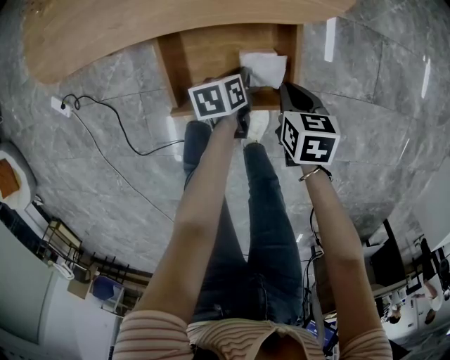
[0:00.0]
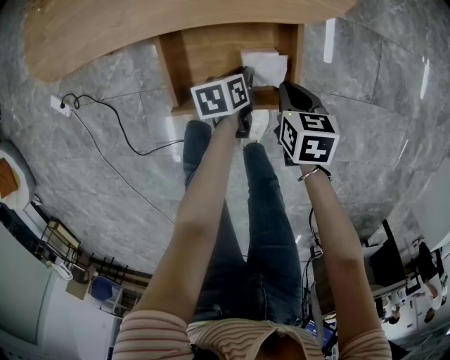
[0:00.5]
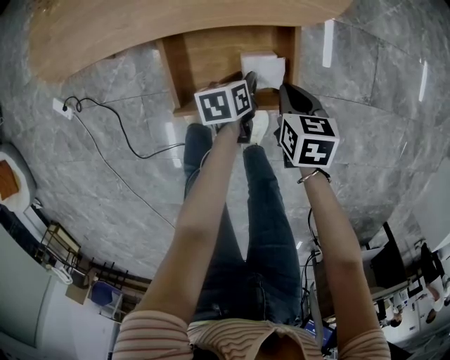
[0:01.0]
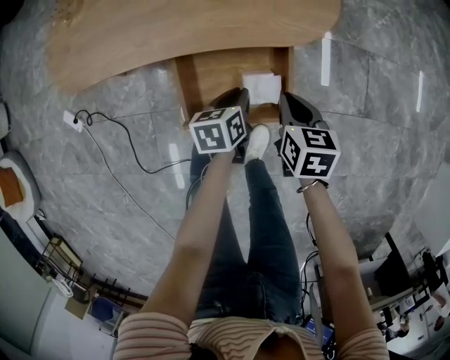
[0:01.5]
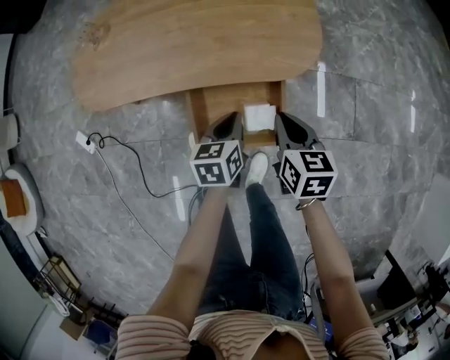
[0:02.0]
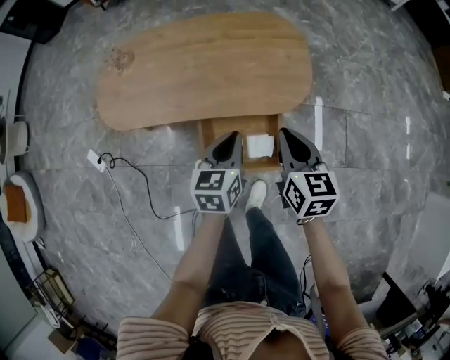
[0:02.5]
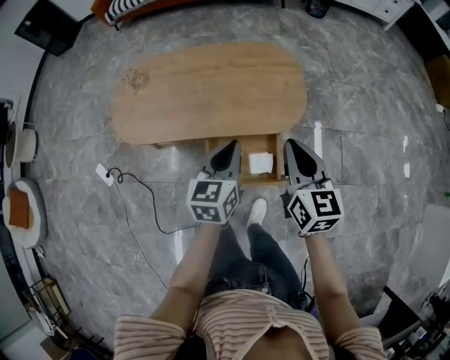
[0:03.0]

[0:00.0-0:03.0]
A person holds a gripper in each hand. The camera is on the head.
0:00.0 to 0:01.5: Both grippers travel together upward, roughly 10 cm.
0:01.5 to 0:03.0: The grippers both shift upward by roughly 35 cm. The left gripper swivels some 40 degrees, while the right gripper tips its fingers upward by about 30 degrees.

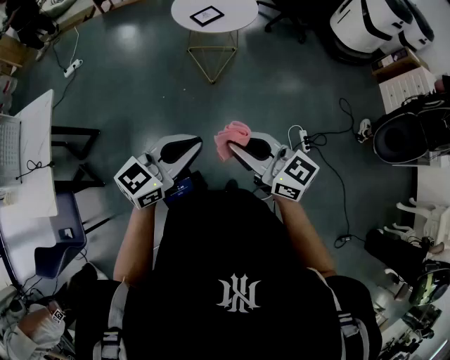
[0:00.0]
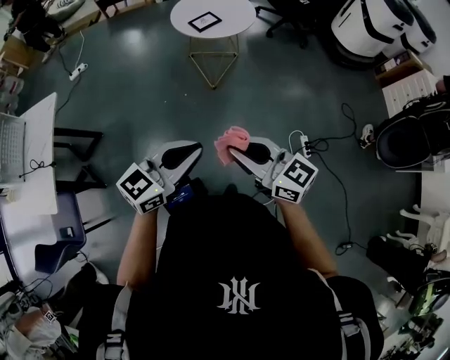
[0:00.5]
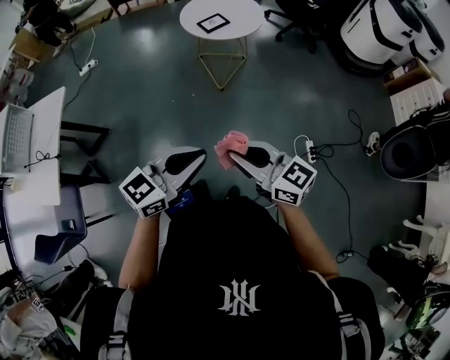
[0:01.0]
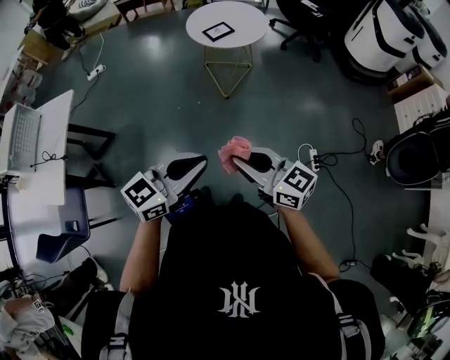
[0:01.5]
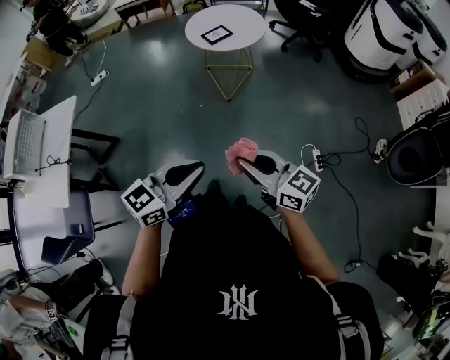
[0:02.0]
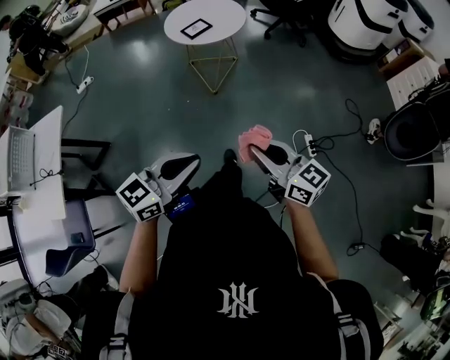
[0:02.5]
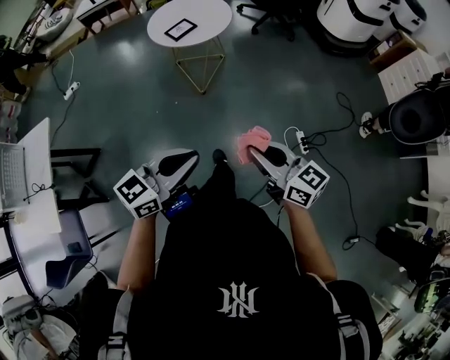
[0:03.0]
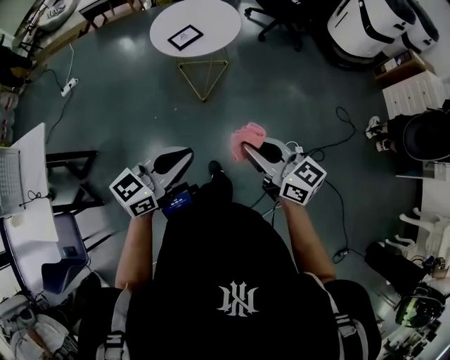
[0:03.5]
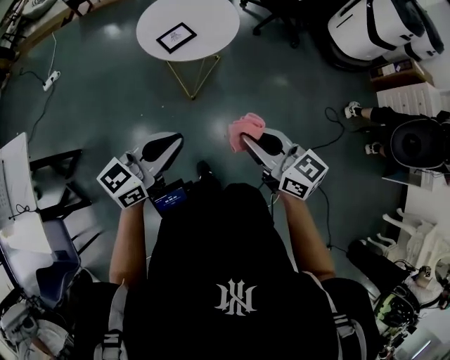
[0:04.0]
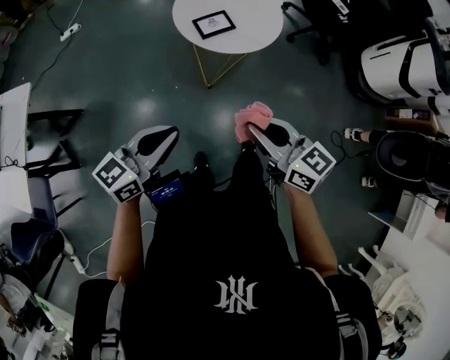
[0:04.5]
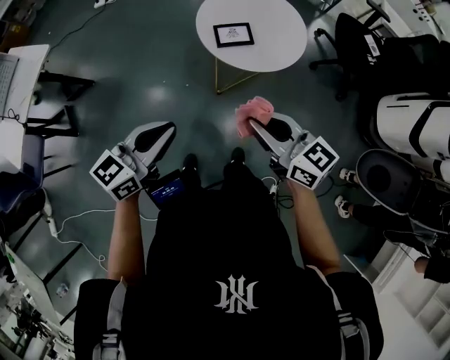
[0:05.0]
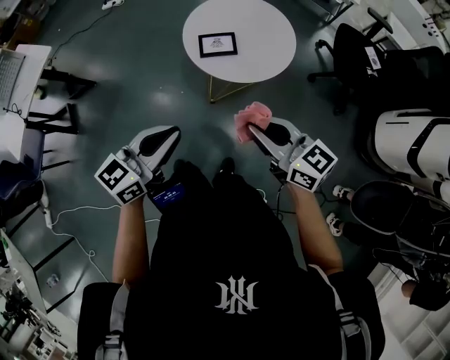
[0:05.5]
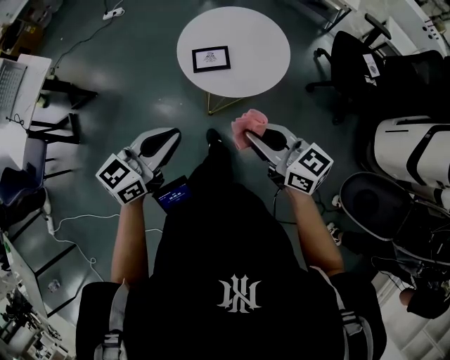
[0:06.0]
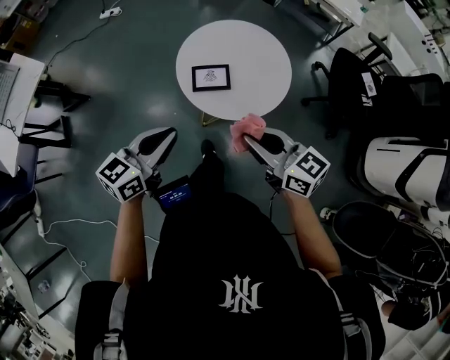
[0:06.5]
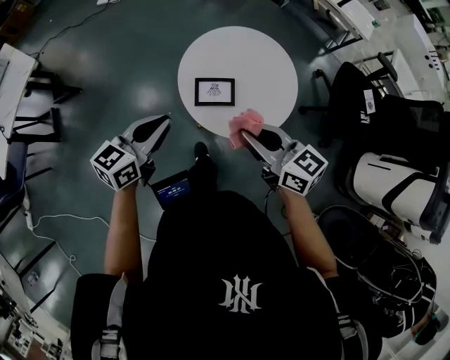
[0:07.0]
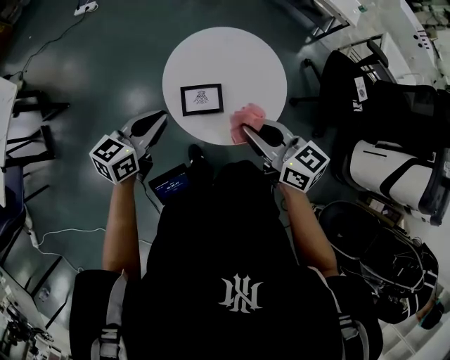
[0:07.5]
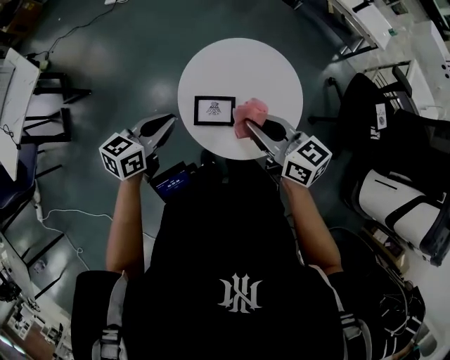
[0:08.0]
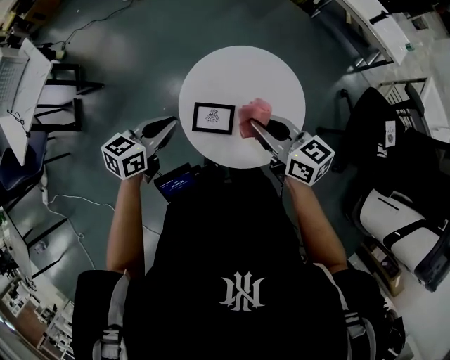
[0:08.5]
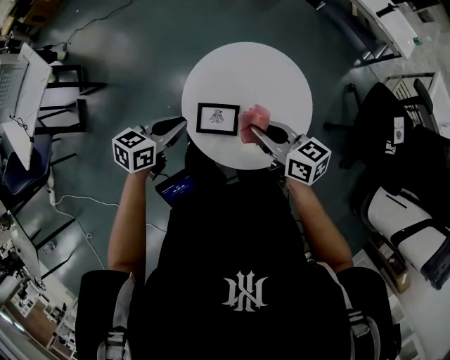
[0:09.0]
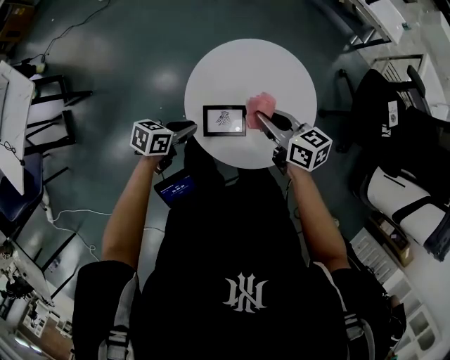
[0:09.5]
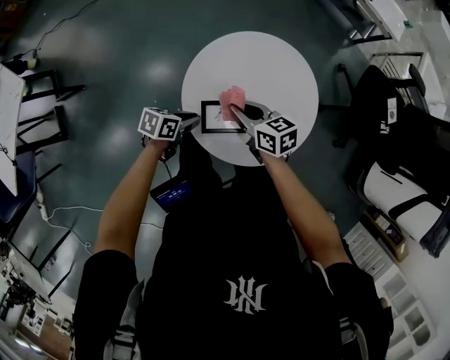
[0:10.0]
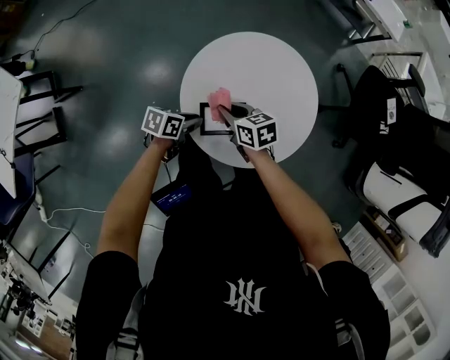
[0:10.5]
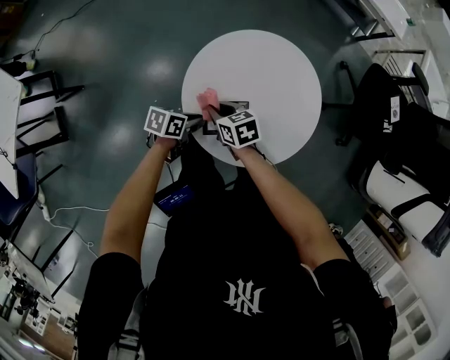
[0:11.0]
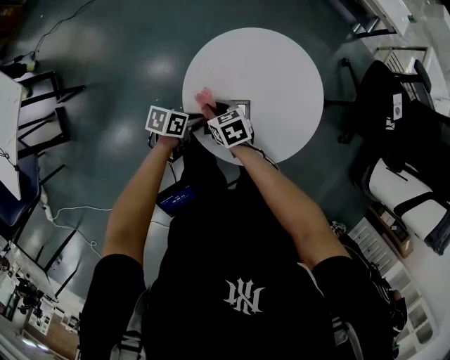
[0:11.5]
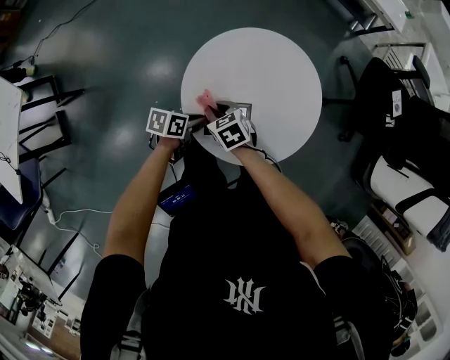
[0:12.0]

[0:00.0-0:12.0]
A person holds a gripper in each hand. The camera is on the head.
0:00.0 to 0:02.0: The left gripper moves to the right and backward, approximately 10 cm; the right gripper moves to the right, approximately 10 cm.
0:02.0 to 0:04.0: The grippers both shift forward by about 35 cm.
0:04.0 to 0:06.0: The left gripper ends up approximately 20 cm from where it was, and turns by roughly 40 degrees. Meanwhile the right gripper changes place by some 30 cm, and changes its angle by about 40 degrees.
0:06.0 to 0:08.0: Both grippers move forward, about 35 cm. The left gripper swivels roughly 20 degrees.
0:08.0 to 0:10.0: Both grippers move downward, approximately 20 cm. The left gripper changes its angle by some 30 degrees.
0:10.0 to 0:12.0: The right gripper heads downward, covering approximately 10 cm, and swivels some 30 degrees.

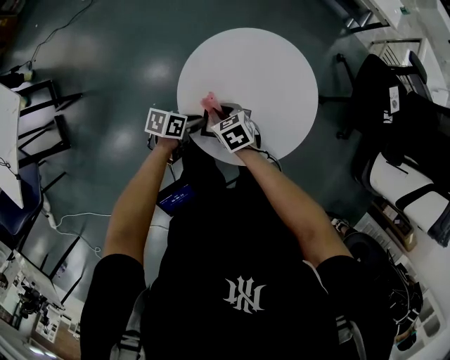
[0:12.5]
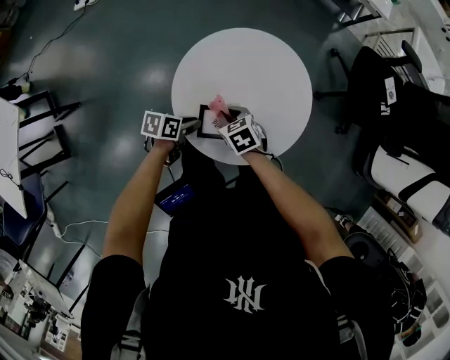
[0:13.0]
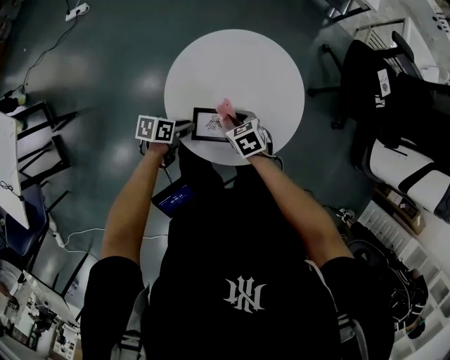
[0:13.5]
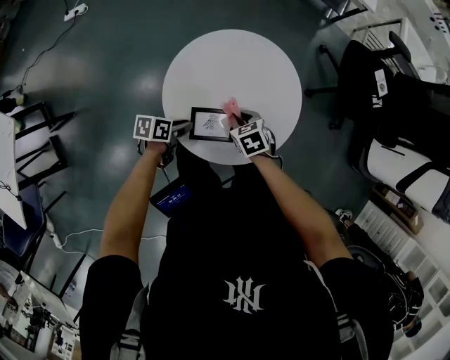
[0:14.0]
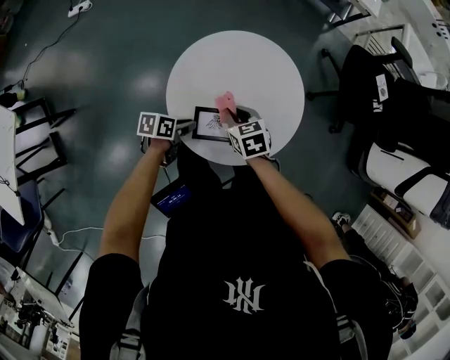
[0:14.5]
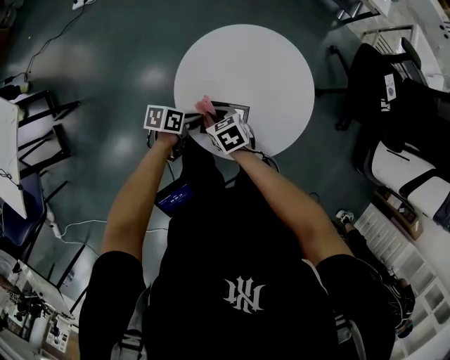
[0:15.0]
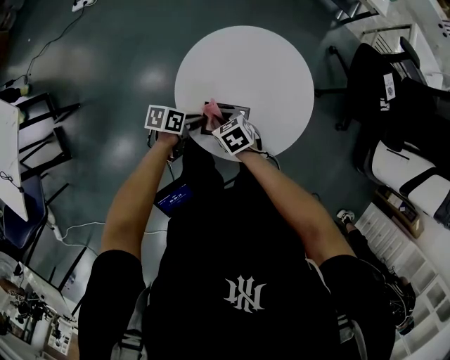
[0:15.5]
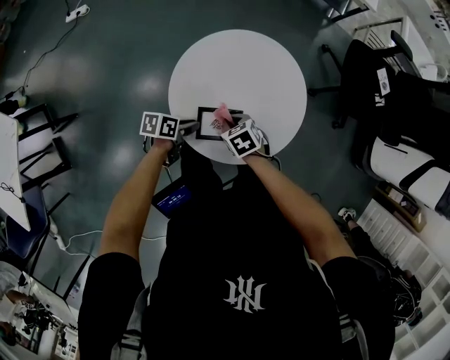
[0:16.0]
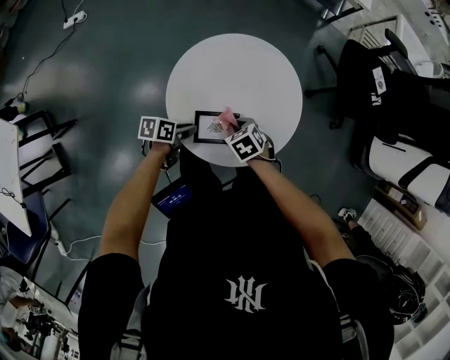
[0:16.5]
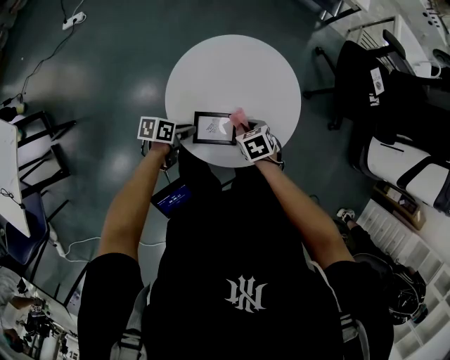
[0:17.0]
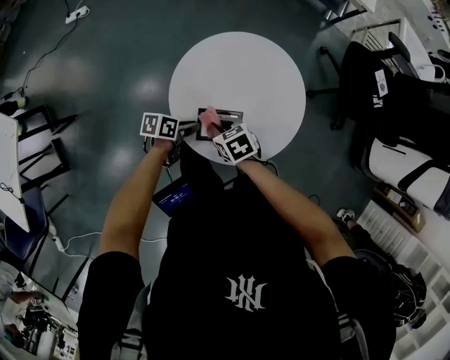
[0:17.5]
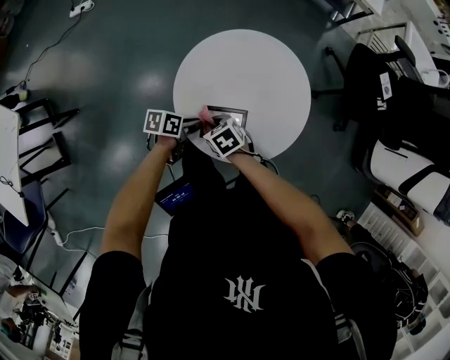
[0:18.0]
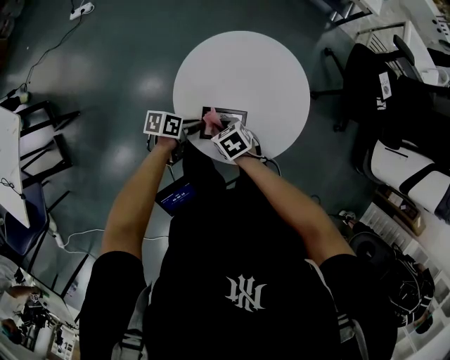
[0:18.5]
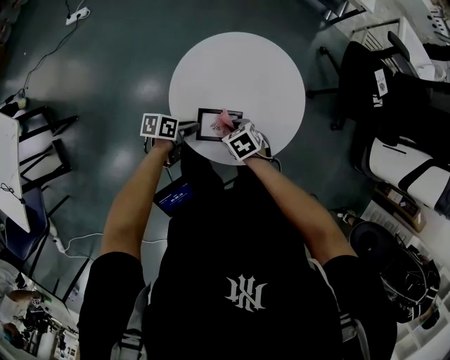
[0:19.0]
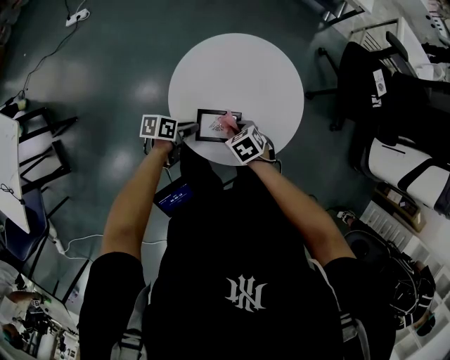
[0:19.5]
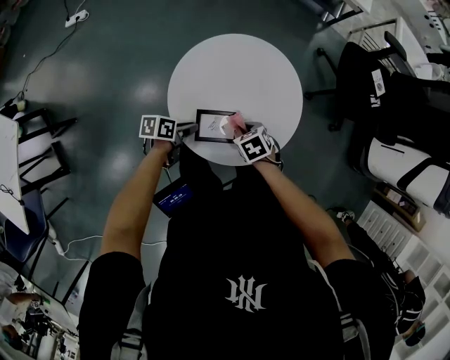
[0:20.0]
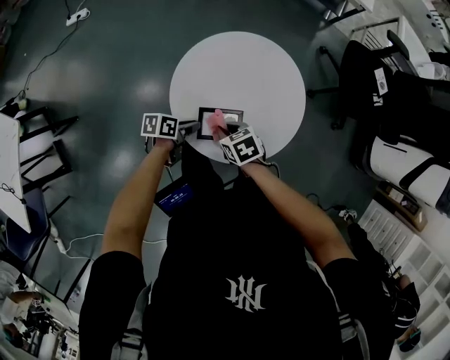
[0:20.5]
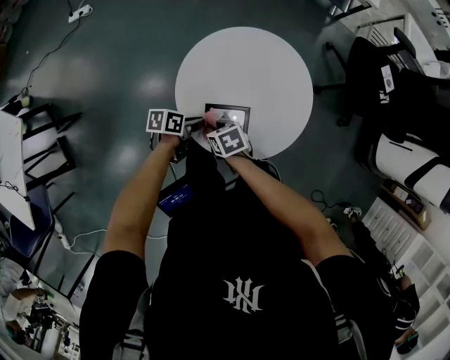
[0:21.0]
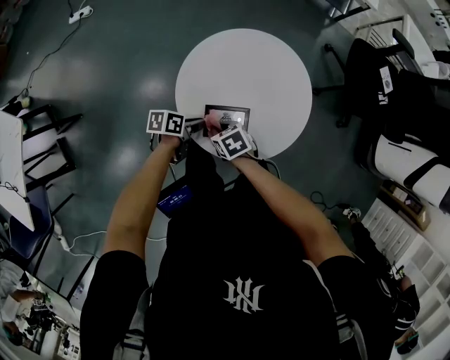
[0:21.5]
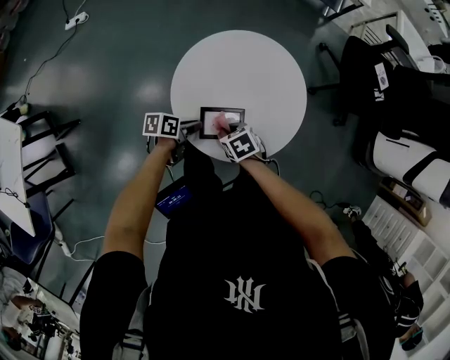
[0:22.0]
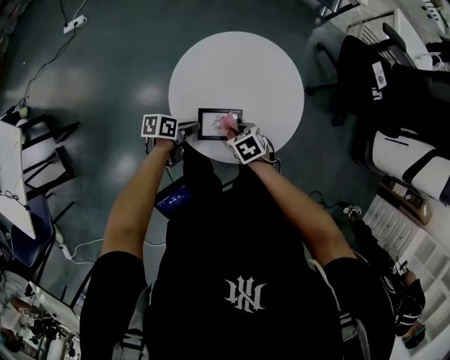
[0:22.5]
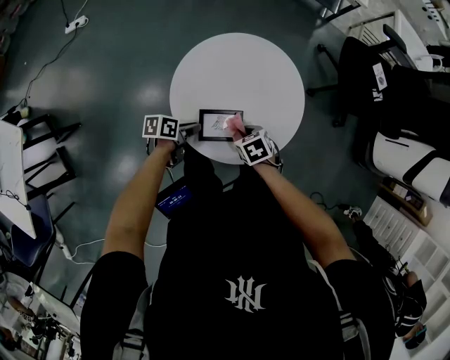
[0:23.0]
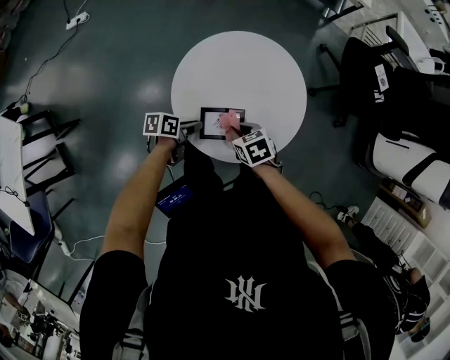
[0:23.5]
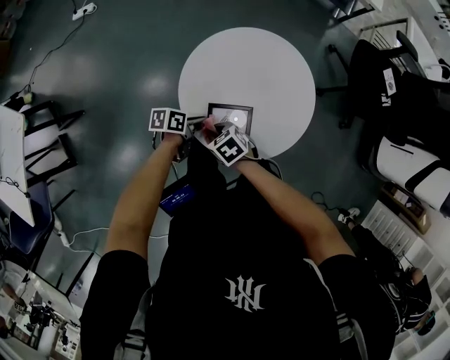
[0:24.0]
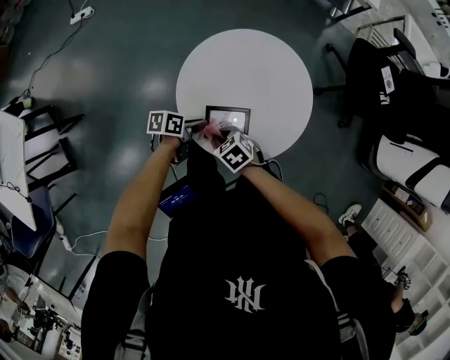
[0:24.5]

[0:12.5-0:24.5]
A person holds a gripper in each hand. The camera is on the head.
0:12.5 to 0:14.5: The right gripper shifts by roughly 10 cm.
0:14.5 to 0:16.5: The right gripper shifts by some 5 cm.
0:16.5 to 0:18.5: The right gripper moves about 10 cm.
0:20.5 to 0:22.5: The right gripper changes place by approximately 5 cm.
0:22.5 to 0:24.5: The right gripper moves roughly 10 cm.
